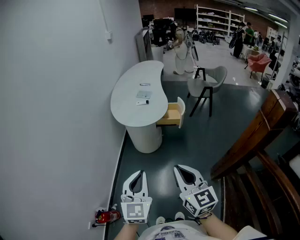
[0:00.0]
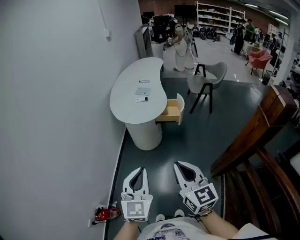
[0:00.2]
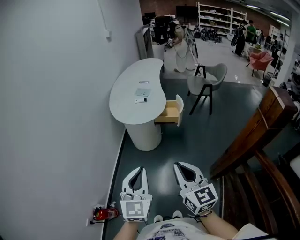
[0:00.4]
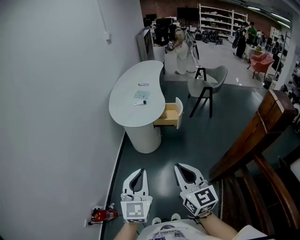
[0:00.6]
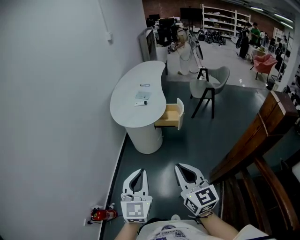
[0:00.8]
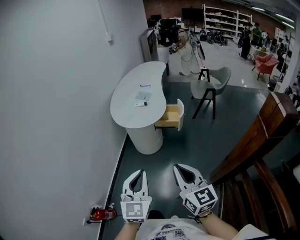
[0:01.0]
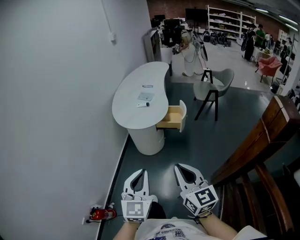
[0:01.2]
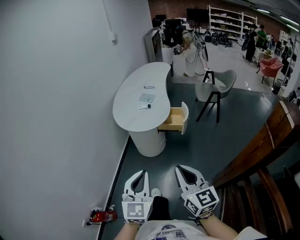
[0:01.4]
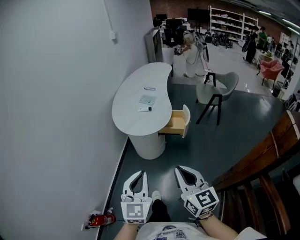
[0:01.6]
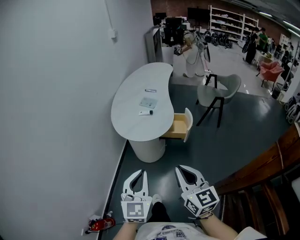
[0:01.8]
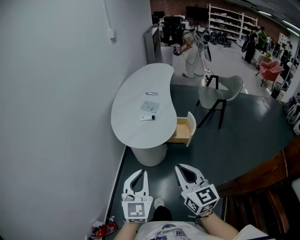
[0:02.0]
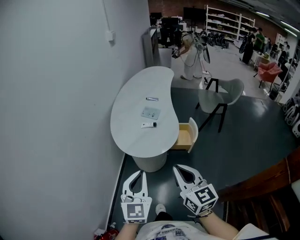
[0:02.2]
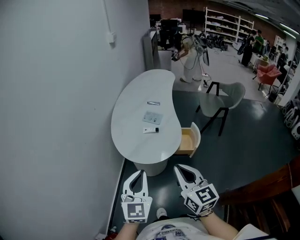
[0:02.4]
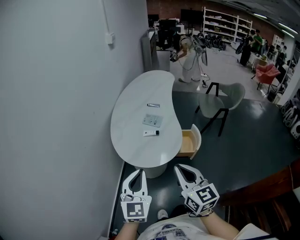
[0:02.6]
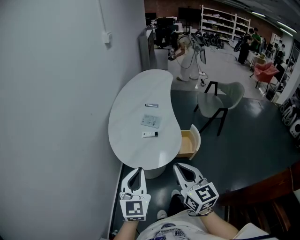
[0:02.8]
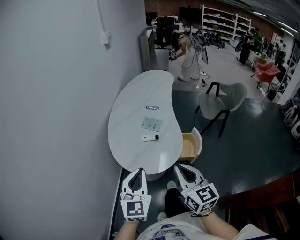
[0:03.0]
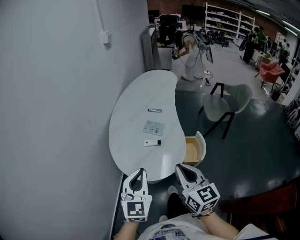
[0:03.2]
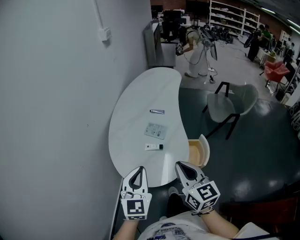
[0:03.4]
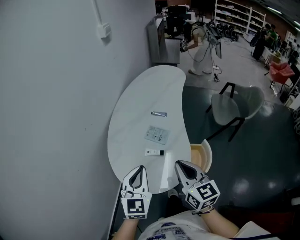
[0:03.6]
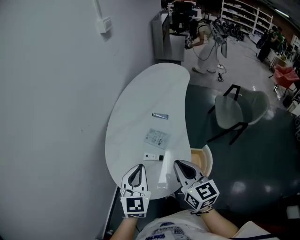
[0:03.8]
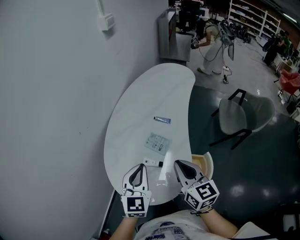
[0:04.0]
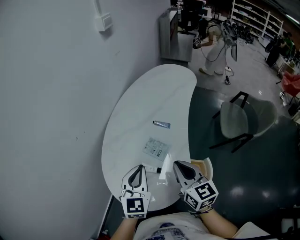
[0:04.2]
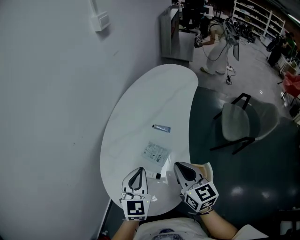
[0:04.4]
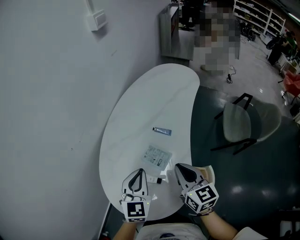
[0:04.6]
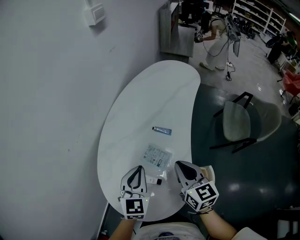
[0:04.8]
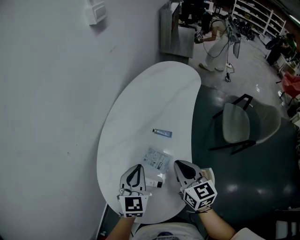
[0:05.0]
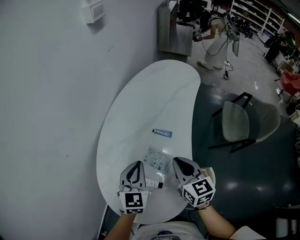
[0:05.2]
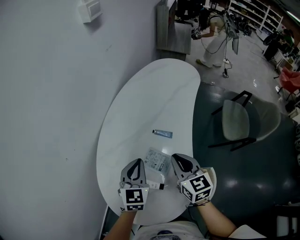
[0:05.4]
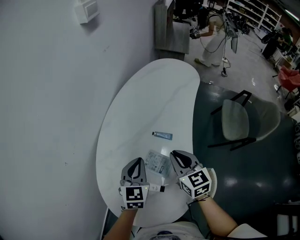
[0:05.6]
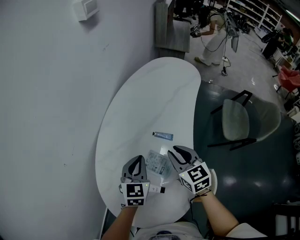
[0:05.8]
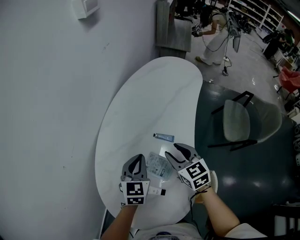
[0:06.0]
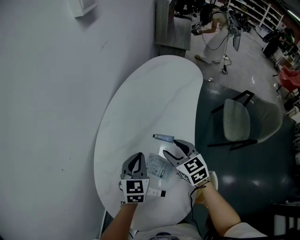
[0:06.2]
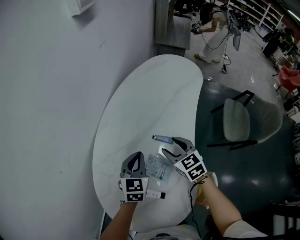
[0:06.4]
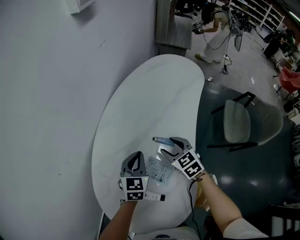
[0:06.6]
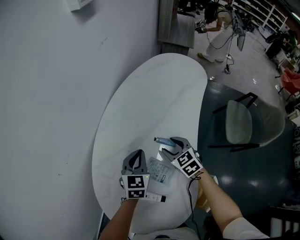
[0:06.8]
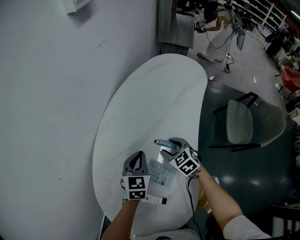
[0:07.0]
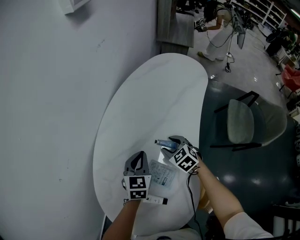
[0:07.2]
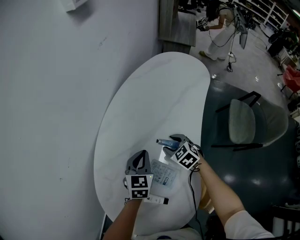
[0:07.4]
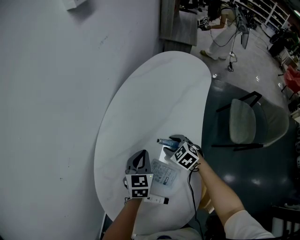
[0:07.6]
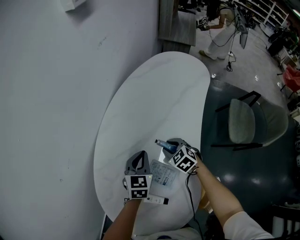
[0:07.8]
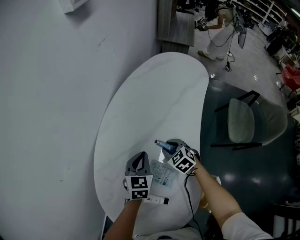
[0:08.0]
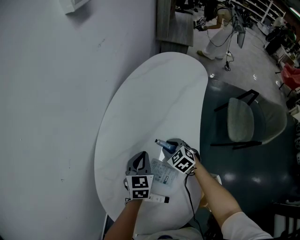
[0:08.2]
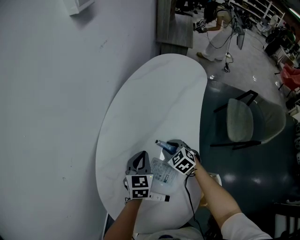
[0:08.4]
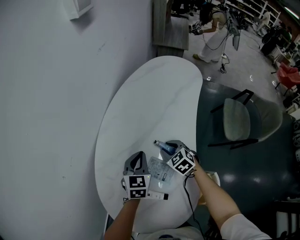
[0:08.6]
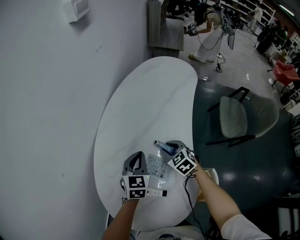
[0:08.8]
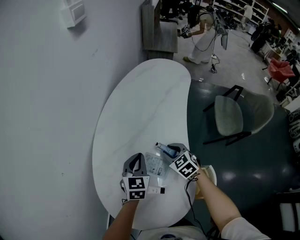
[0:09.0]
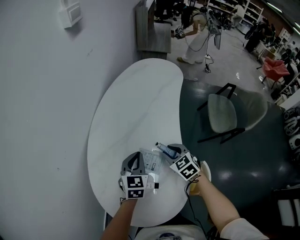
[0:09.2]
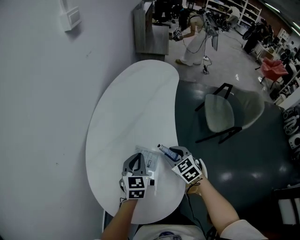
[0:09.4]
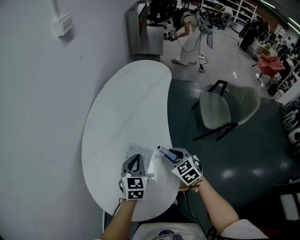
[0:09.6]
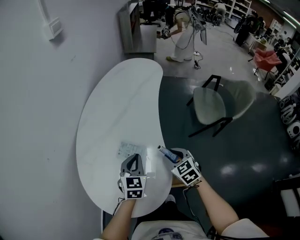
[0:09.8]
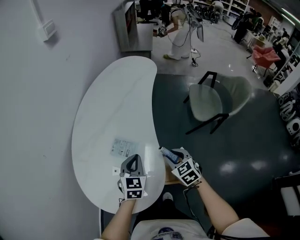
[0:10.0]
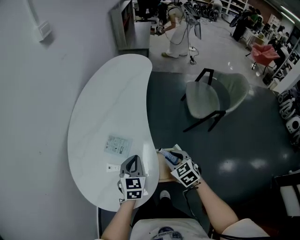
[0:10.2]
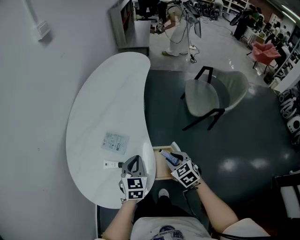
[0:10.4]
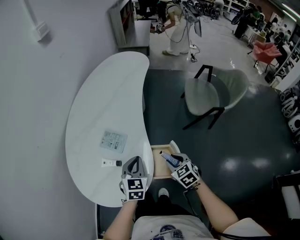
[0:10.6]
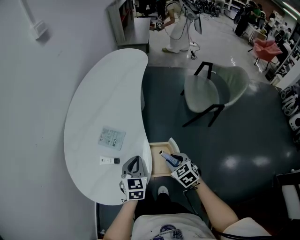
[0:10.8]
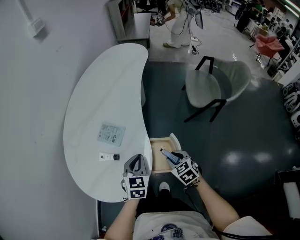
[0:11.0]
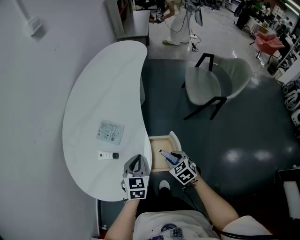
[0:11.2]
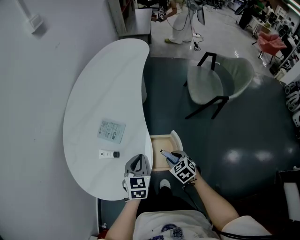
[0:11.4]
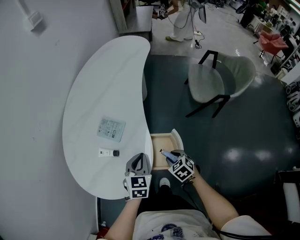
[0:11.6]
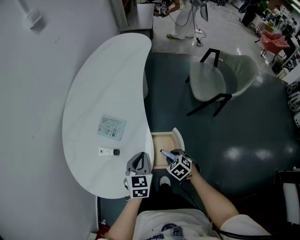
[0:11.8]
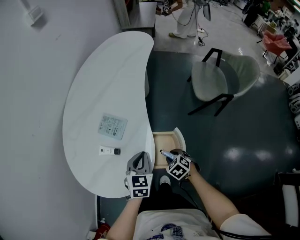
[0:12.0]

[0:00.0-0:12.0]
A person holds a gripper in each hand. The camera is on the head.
0:00.0 to 0:01.6: Both grippers travel together forward and to the right, roughly 15 cm.
0:01.6 to 0:03.0: The grippers both shift forward by some 35 cm.
0:03.0 to 0:04.4: The two grippers go about 35 cm forward.
0:04.4 to 0:06.0: The two grippers go approximately 20 cm forward and downward. The right gripper opens its fingers.
0:06.0 to 0:07.6: The right gripper shifts approximately 20 cm downward and forward, and rotates some 30 degrees; the left gripper heads downward and forward, covering roughly 10 cm.
0:07.6 to 0:09.0: The right gripper moves backward and upward, approximately 10 cm. Meanwhile the left gripper travels backward by approximately 5 cm.
0:09.0 to 0:10.4: The two grippers go approximately 30 cm backward and to the right.
0:10.4 to 0:12.0: The right gripper moves downward, approximately 15 cm, and changes its angle by some 20 degrees, while the left gripper heads downward, covering roughly 5 cm.

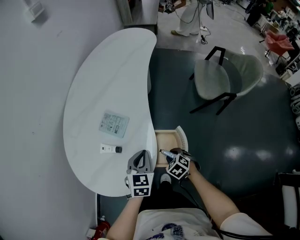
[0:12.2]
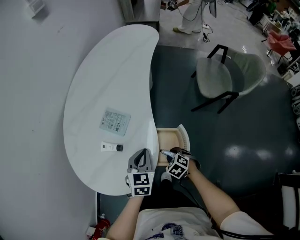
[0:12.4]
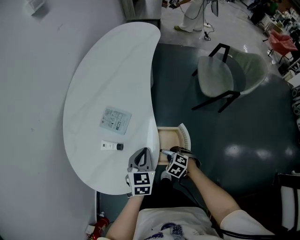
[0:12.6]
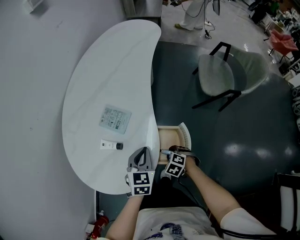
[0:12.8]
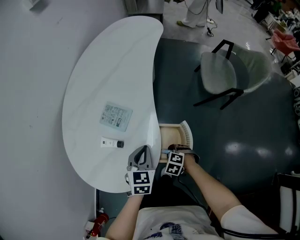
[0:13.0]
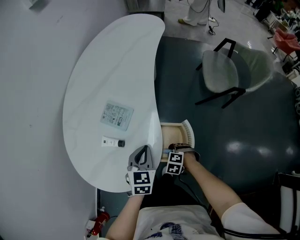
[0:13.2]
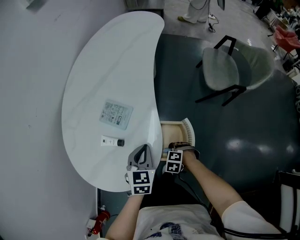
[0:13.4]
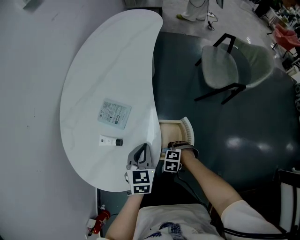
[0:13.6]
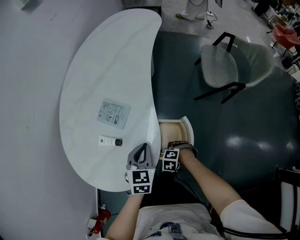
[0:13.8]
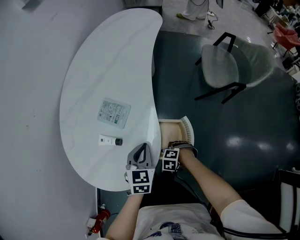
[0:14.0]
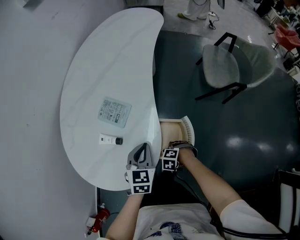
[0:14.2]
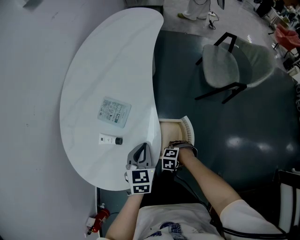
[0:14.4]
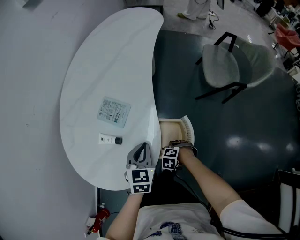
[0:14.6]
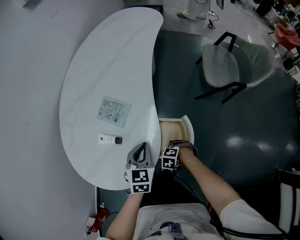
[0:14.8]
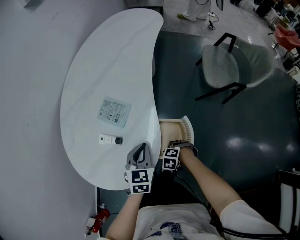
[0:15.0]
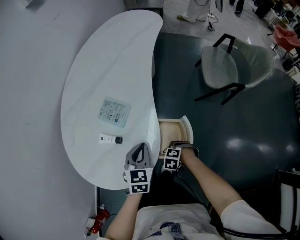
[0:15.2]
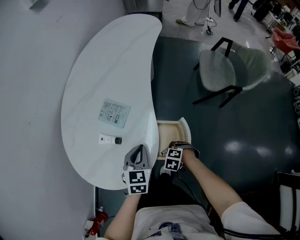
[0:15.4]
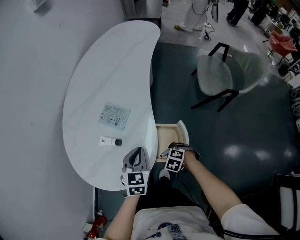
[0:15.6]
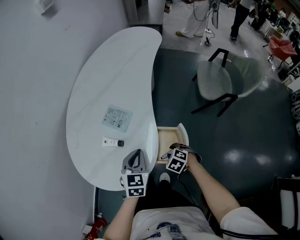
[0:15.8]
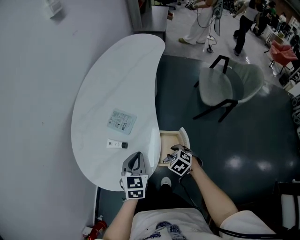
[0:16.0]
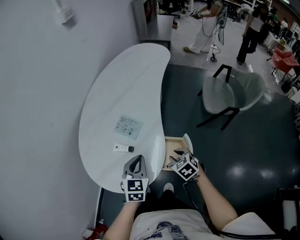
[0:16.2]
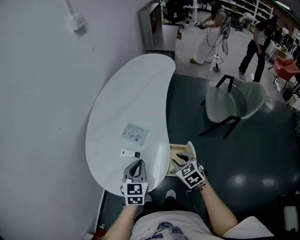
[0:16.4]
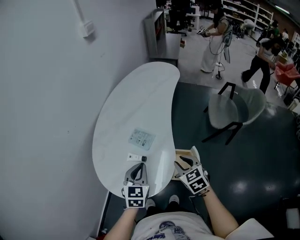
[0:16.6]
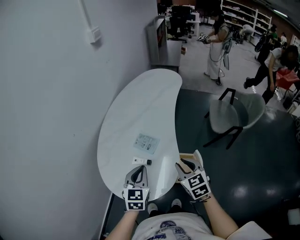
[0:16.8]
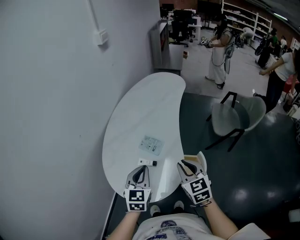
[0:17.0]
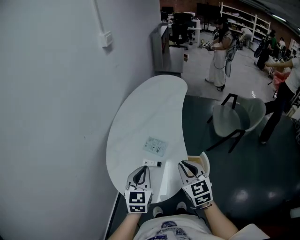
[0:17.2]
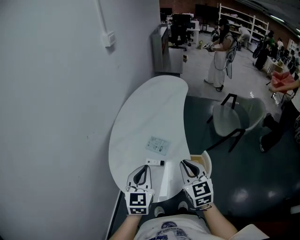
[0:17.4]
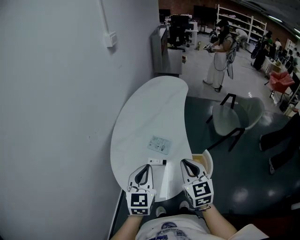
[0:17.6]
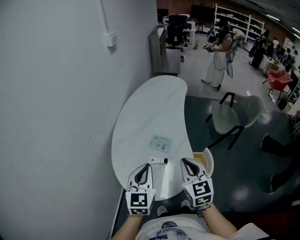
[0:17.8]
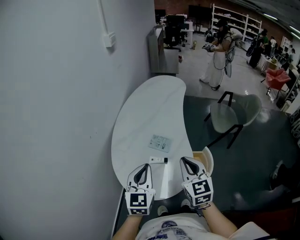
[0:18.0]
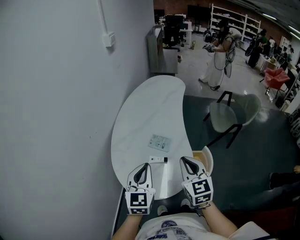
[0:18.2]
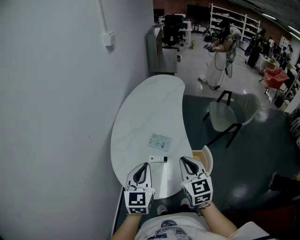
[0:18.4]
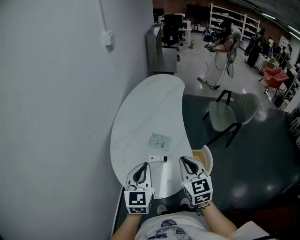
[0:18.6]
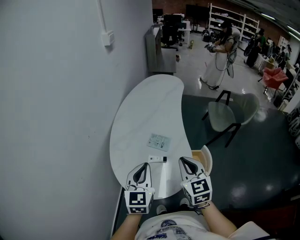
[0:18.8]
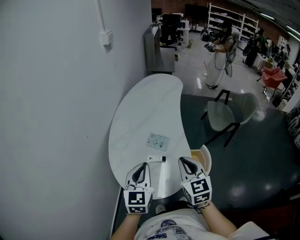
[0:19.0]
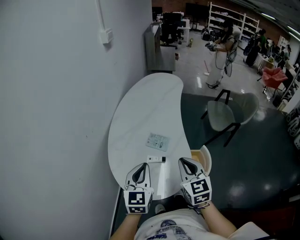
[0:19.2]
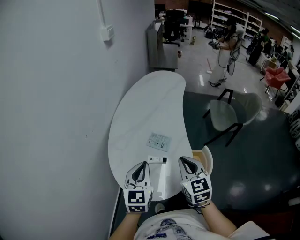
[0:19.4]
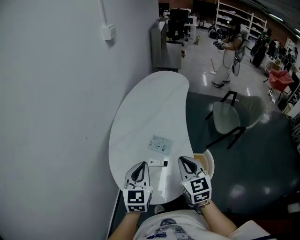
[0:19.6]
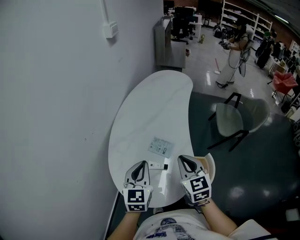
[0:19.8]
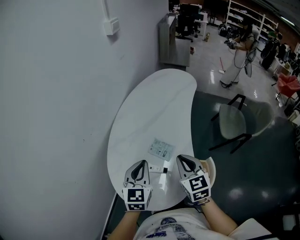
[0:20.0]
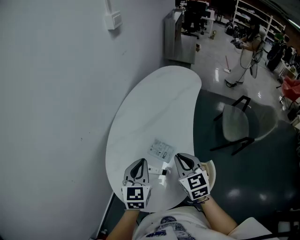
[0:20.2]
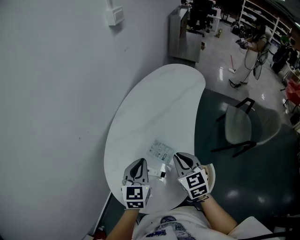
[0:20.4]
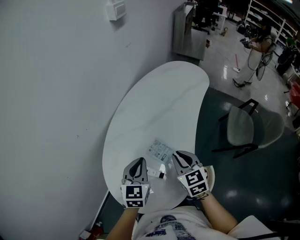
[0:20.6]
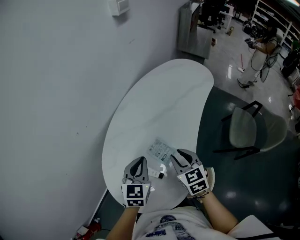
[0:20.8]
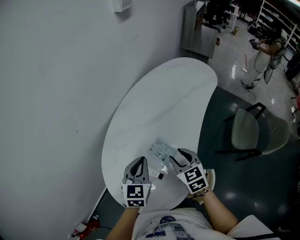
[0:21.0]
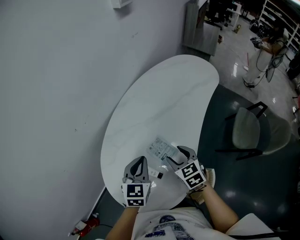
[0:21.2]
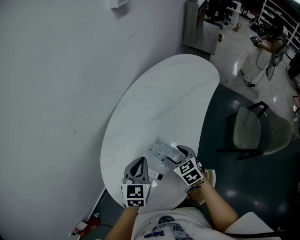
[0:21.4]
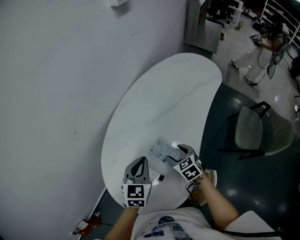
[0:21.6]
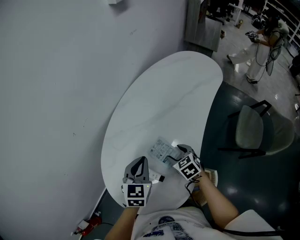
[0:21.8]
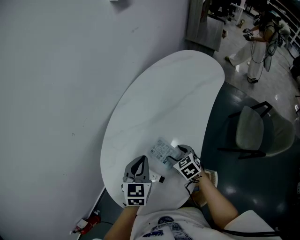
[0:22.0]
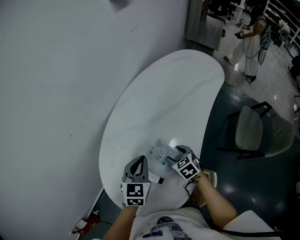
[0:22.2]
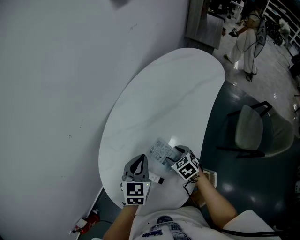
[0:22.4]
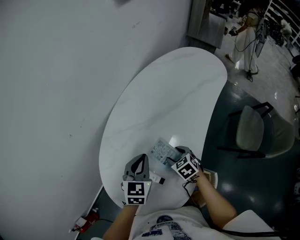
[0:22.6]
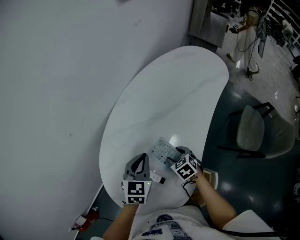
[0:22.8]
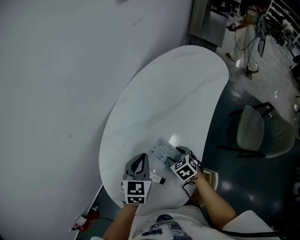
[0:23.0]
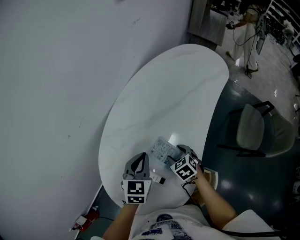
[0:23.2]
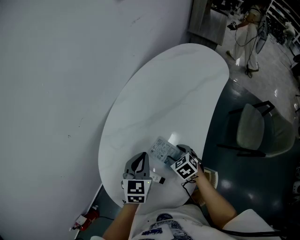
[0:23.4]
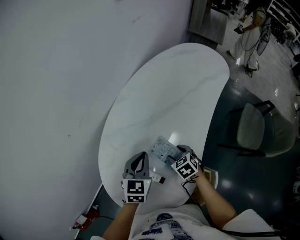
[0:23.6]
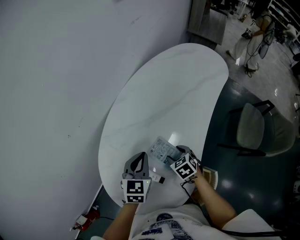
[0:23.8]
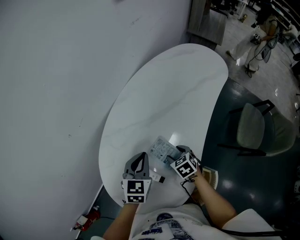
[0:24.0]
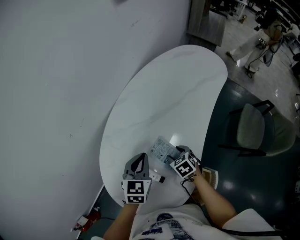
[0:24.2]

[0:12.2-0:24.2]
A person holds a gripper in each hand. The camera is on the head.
0:12.2 to 0:13.8: The right gripper is displaced downward by roughly 10 cm, and swivels about 40 degrees.
0:13.8 to 0:15.2: Both grippers stay put.
0:15.2 to 0:16.6: The right gripper is displaced upward by some 35 cm, and points its fingers some 50 degrees further upward; the left gripper is displaced upward by roughly 15 cm.
0:16.6 to 0:18.2: The left gripper moves to the left and upward, some 20 cm. The right gripper goes roughly 20 cm upward and to the left, turns by roughly 30 degrees, and closes.
0:18.2 to 0:19.8: The two grippers go some 10 cm forward.
0:19.8 to 0:21.2: The right gripper moves downward and forward, approximately 20 cm, changes its angle by about 30 degrees, and opens up, while the left gripper goes some 15 cm forward and downward.
0:21.2 to 0:22.6: The left gripper moves forward, roughly 5 cm. The right gripper is displaced downward by some 10 cm.
0:22.6 to 0:24.2: There are only small adjustments of the grippers.
